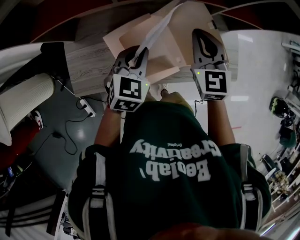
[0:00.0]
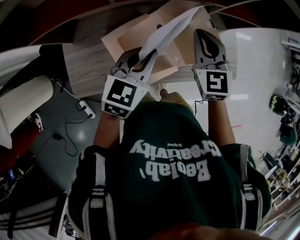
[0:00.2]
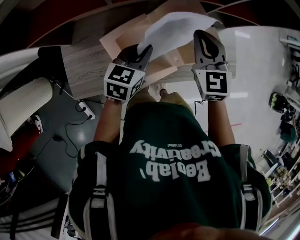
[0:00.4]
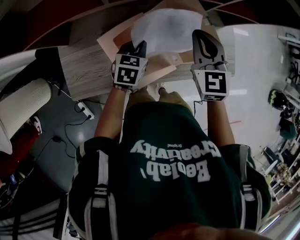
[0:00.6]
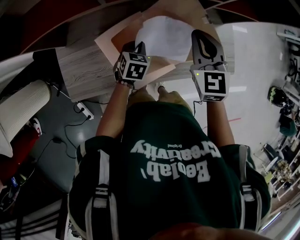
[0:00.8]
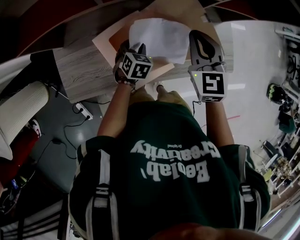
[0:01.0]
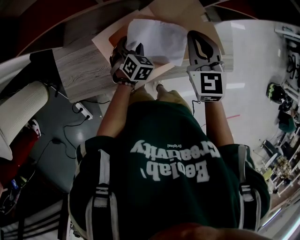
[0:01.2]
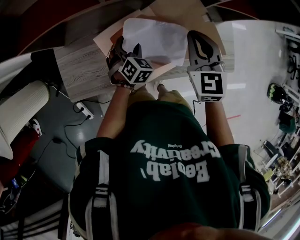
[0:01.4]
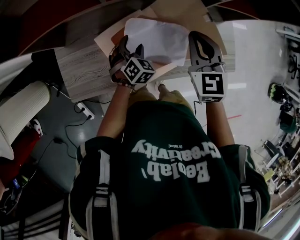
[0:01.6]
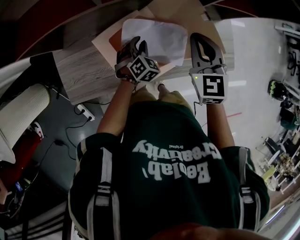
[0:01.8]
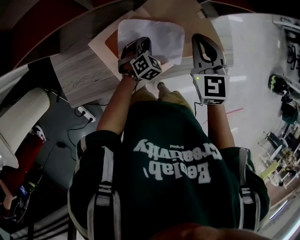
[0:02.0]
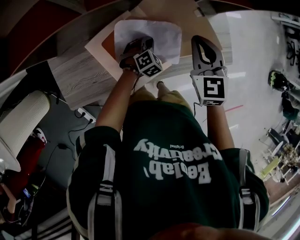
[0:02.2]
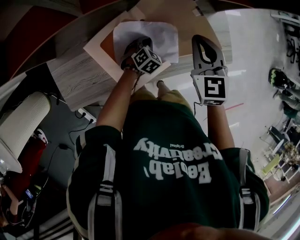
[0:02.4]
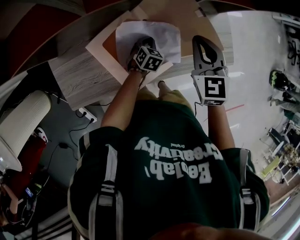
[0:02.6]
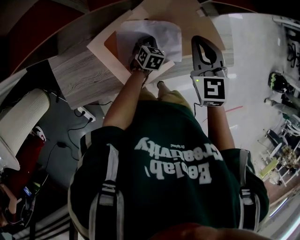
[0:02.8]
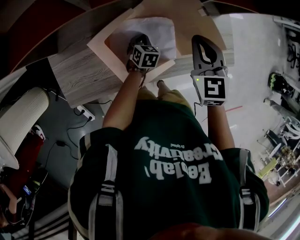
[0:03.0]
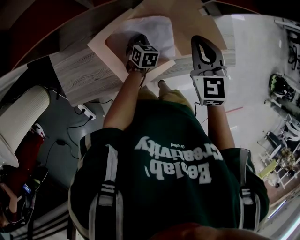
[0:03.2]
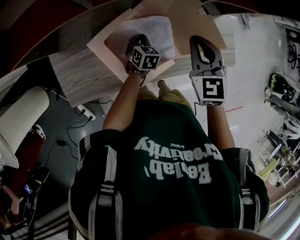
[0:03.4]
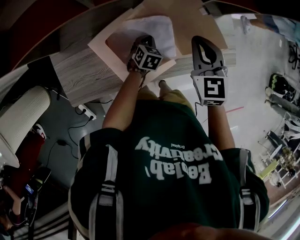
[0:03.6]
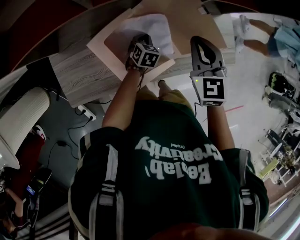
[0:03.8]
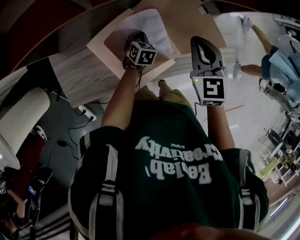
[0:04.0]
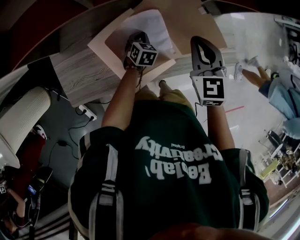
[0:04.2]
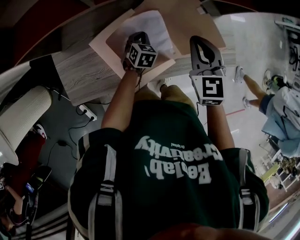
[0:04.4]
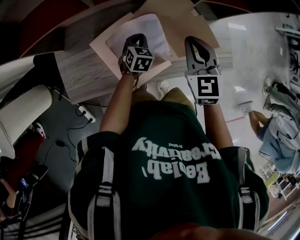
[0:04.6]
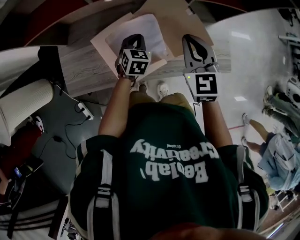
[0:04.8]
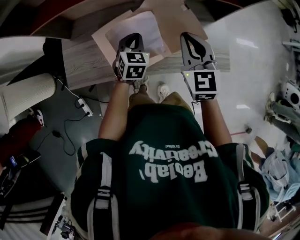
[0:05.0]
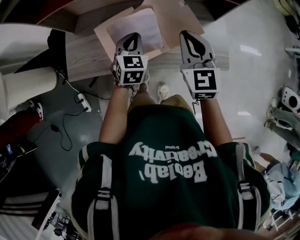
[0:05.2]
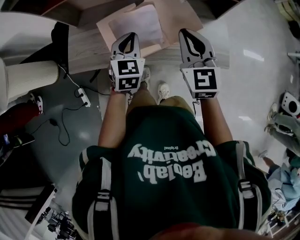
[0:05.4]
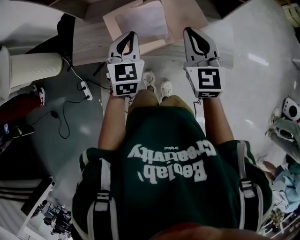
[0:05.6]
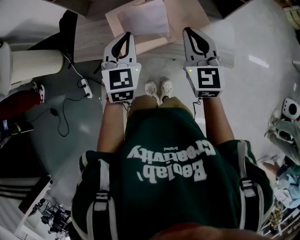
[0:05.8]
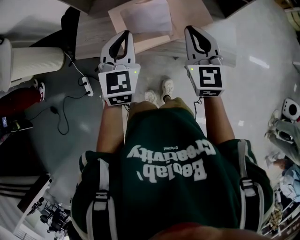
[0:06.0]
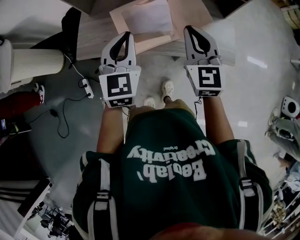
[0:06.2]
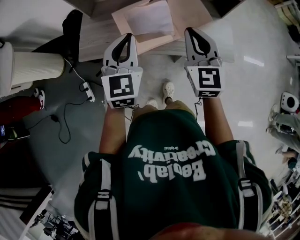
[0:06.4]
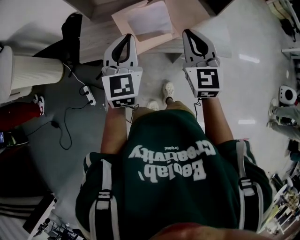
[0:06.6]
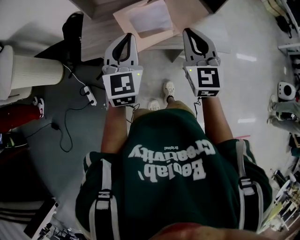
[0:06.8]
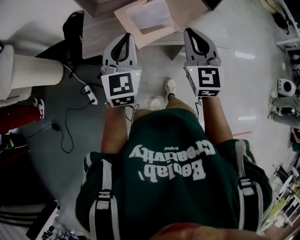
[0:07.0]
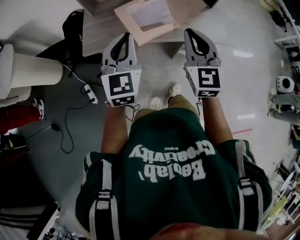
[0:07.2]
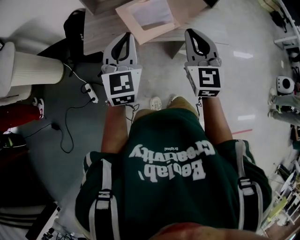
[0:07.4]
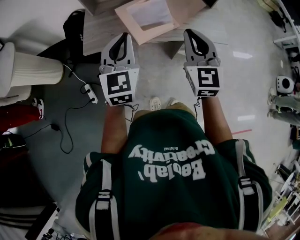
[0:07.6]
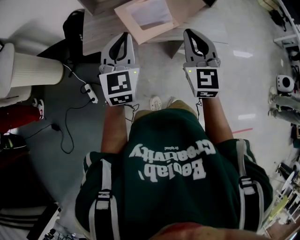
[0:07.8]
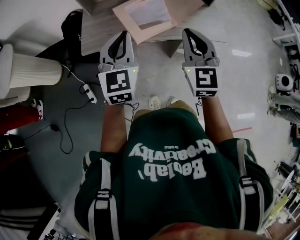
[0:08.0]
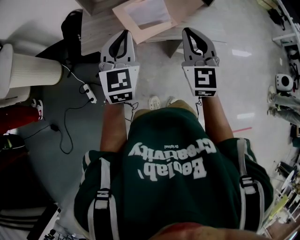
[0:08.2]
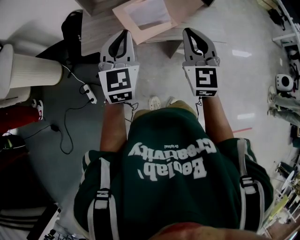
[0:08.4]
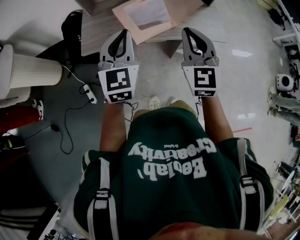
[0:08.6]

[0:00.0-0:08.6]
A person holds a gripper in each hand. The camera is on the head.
0:00.0 to 0:01.4: The left gripper moves downward, about 15 cm, changes its angle by approximately 30 degrees, and opens its fingers.
0:01.4 to 0:02.8: The left gripper heads to the right and downward, covering some 15 cm, rotates some 20 degrees, and closes up.
0:02.8 to 0:04.4: The left gripper changes place by roughly 5 cm.
0:04.4 to 0:05.8: The right gripper moves backward and upward, some 20 cm, and rotates roughly 30 degrees. Meanwhile the left gripper travels upward and backward by roughly 40 cm, and turns by some 40 degrees.
0:05.8 to 0:07.2: The right gripper moves backward and to the left, approximately 25 cm, while the left gripper heads backward, to the left and upward, covering some 25 cm.
0:07.2 to 0:08.6: The grippers stay close to where they were, moving slightly.

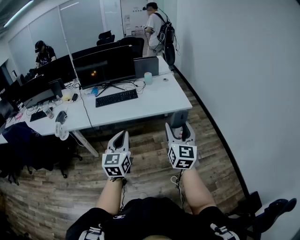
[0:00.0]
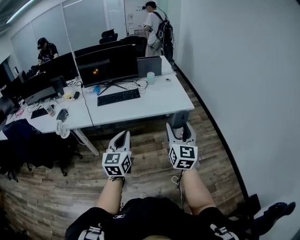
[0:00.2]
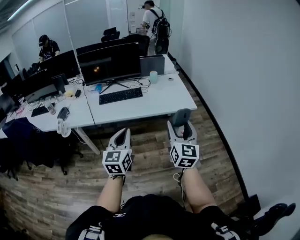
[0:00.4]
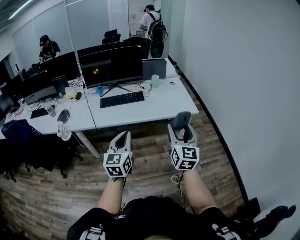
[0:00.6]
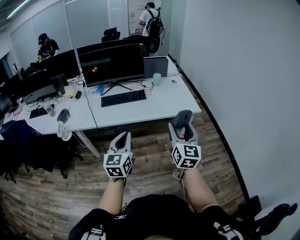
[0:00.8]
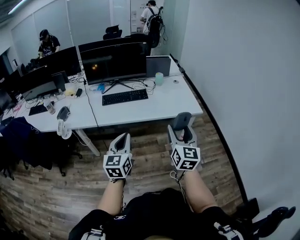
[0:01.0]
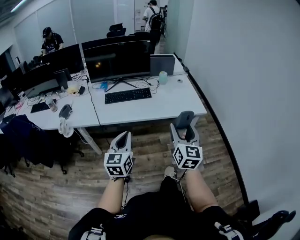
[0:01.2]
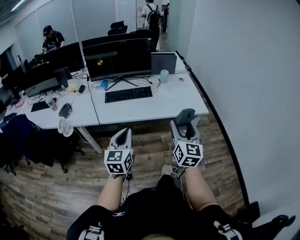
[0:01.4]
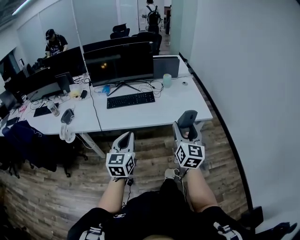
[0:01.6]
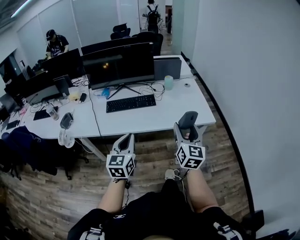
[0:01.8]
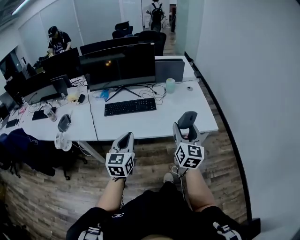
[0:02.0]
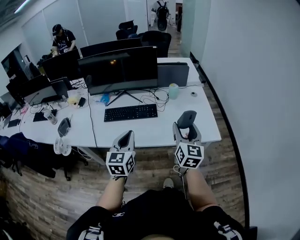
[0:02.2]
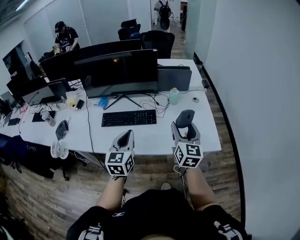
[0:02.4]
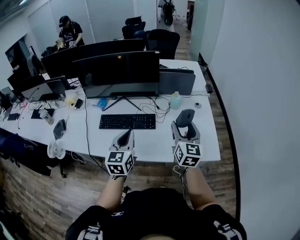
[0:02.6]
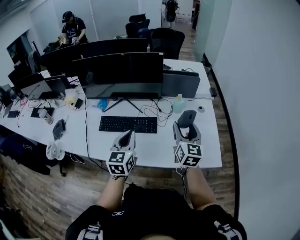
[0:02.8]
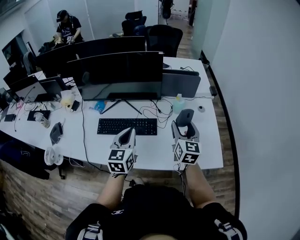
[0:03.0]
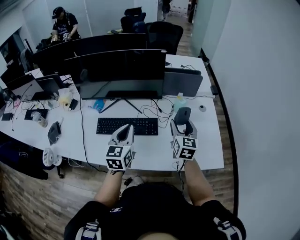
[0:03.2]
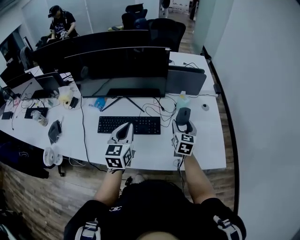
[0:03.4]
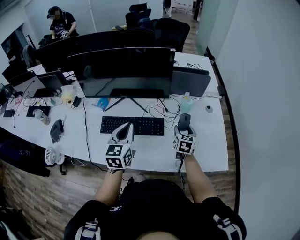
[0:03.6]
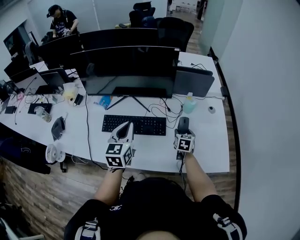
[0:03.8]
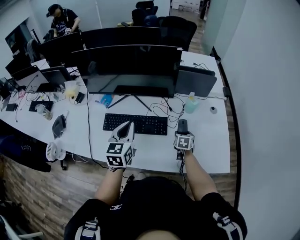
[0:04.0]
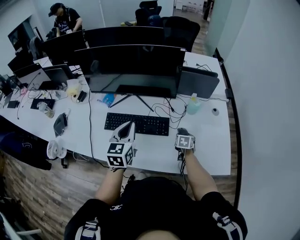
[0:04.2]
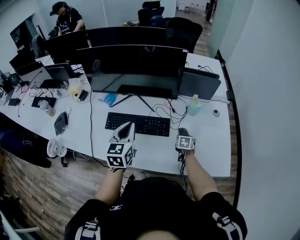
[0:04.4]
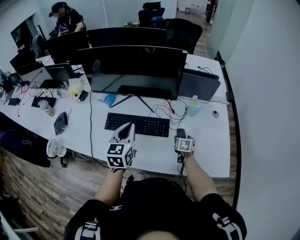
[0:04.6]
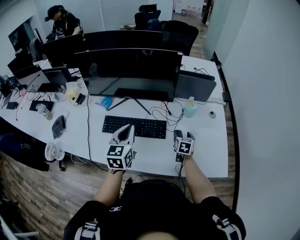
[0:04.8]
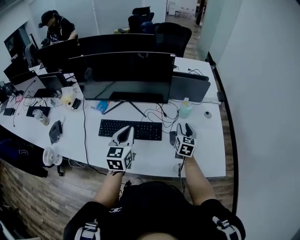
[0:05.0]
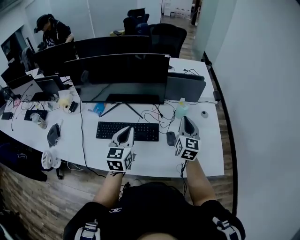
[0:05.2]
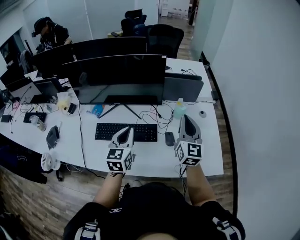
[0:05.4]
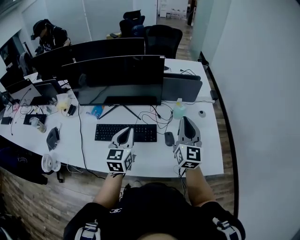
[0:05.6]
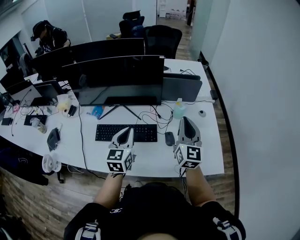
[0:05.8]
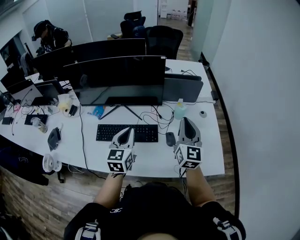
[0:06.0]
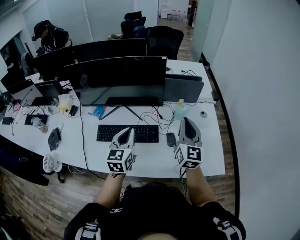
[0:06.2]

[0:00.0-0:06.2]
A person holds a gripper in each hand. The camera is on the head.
0:00.0 to 0:01.6: The two grippers go approximately 20 cm forward and to the left.
0:01.6 to 0:03.2: Both grippers are carried forward, approximately 50 cm.
0:03.2 to 0:04.6: The right gripper goes some 25 cm downward, and angles its fingers downward, by approximately 40 degrees; the left gripper travels to the left by roughly 5 cm.
0:04.6 to 0:06.2: The right gripper moves upward, roughly 35 cm, angles its fingers upward, by roughly 60 degrees, and closes up; the left gripper moves to the right, approximately 5 cm.

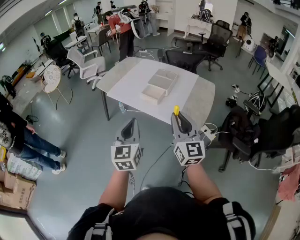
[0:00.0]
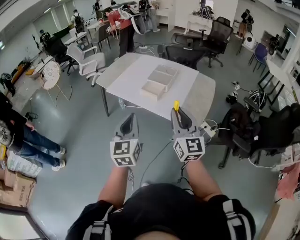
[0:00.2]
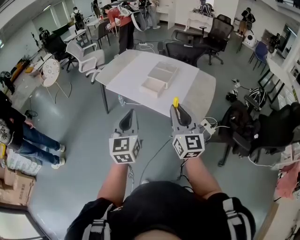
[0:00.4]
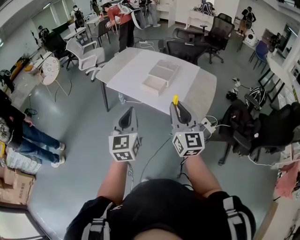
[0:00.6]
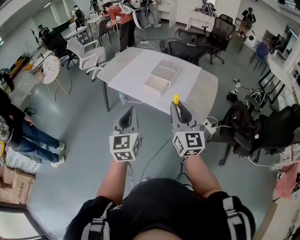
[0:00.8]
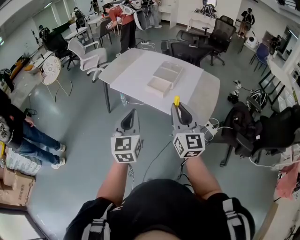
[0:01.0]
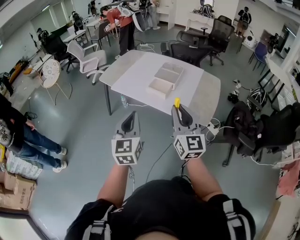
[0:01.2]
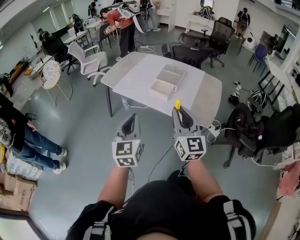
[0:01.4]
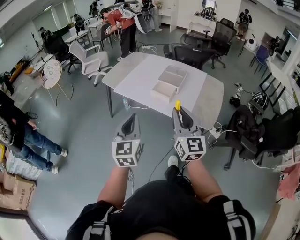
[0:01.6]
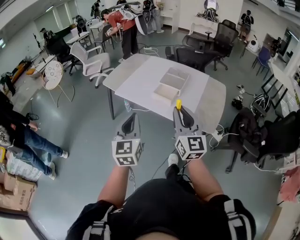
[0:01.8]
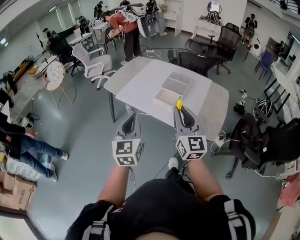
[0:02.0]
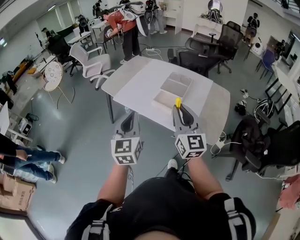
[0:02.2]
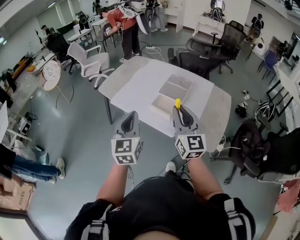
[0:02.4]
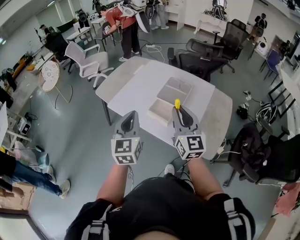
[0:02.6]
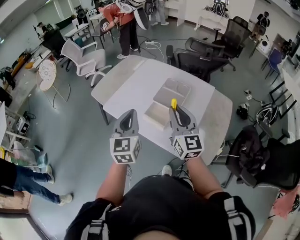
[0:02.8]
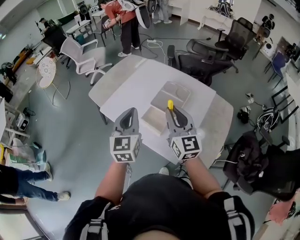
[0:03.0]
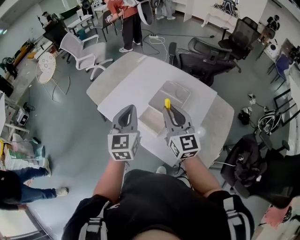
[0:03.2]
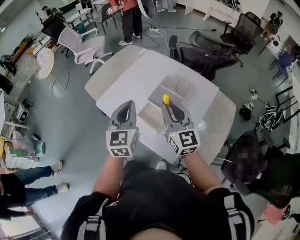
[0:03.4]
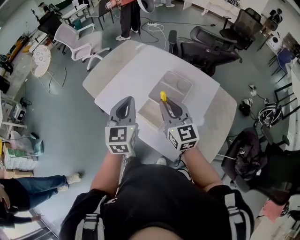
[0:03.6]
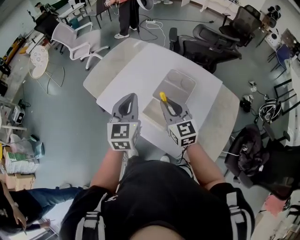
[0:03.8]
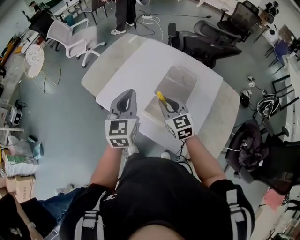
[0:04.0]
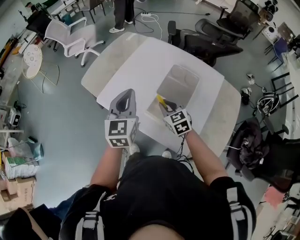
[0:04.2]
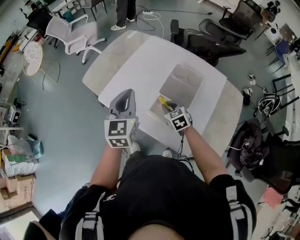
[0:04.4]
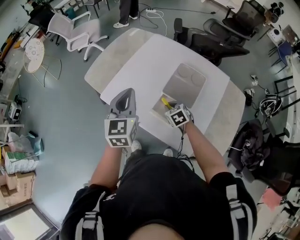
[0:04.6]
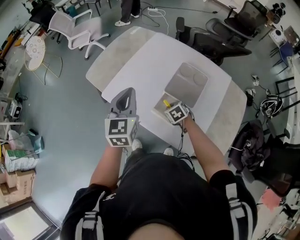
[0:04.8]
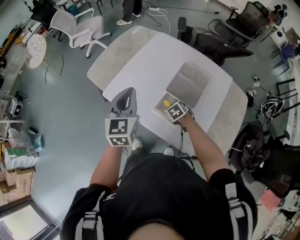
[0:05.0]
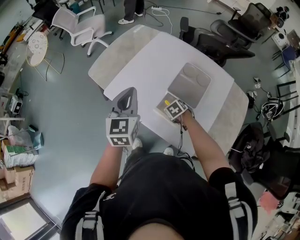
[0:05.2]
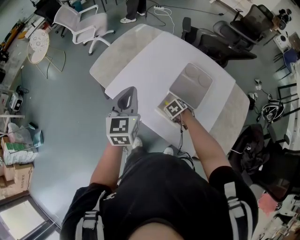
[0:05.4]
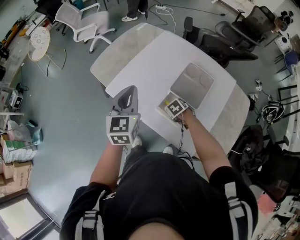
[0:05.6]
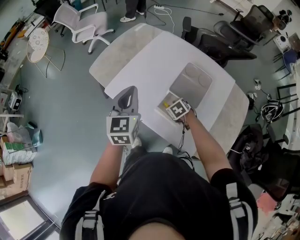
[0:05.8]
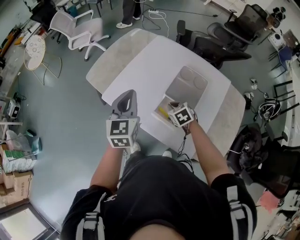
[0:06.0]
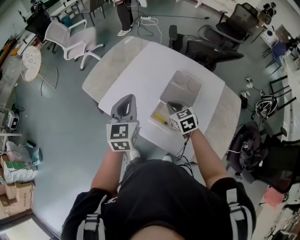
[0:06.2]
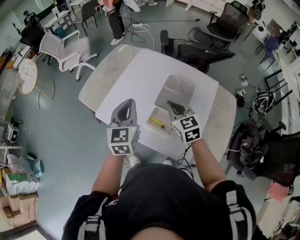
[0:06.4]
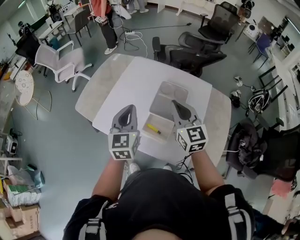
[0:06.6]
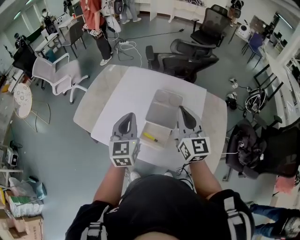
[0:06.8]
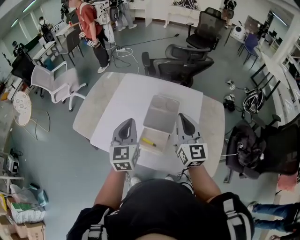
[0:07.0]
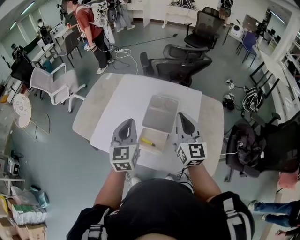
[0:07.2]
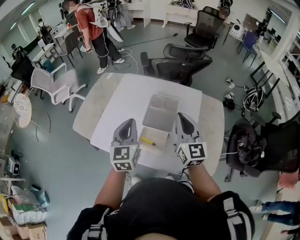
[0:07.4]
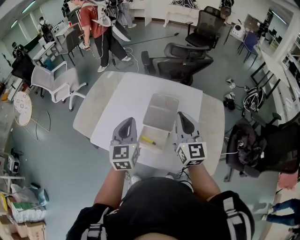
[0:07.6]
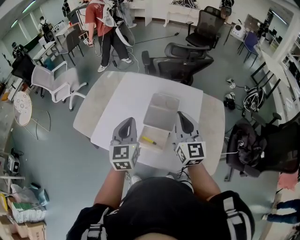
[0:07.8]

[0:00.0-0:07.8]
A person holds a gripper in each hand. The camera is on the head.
0:00.0 to 0:01.6: The two grippers go roughly 10 cm to the left.
0:01.6 to 0:03.2: Both grippers travel together forward, roughly 40 cm.
0:03.2 to 0:04.6: The right gripper is displaced downward by roughly 30 cm, and angles its fingers downward, by approximately 60 degrees. The left gripper moves forward, to the left and downward, approximately 15 cm.
0:04.6 to 0:06.2: The right gripper heads upward, covering approximately 10 cm.
0:06.2 to 0:07.8: The left gripper moves to the right, approximately 10 cm. Meanwhile the right gripper goes roughly 25 cm upward and to the right, and points its fingers approximately 40 degrees further upward.

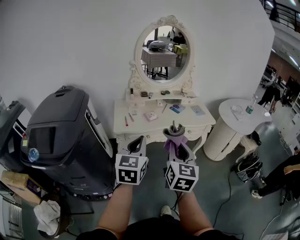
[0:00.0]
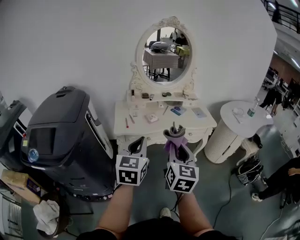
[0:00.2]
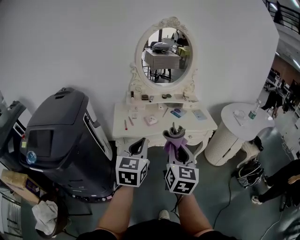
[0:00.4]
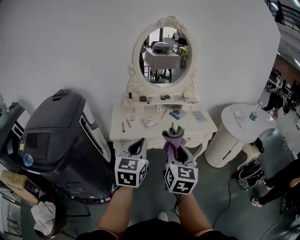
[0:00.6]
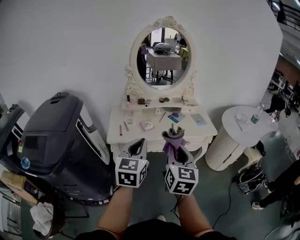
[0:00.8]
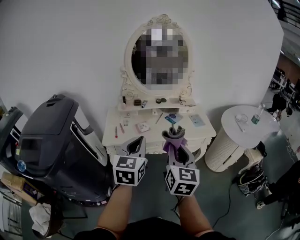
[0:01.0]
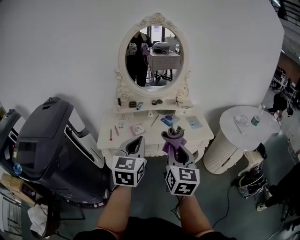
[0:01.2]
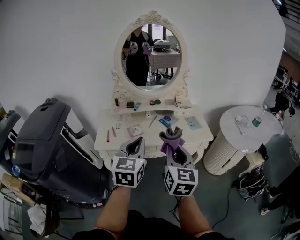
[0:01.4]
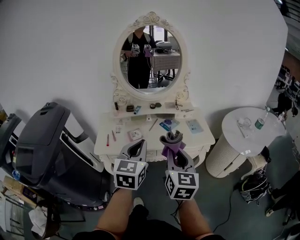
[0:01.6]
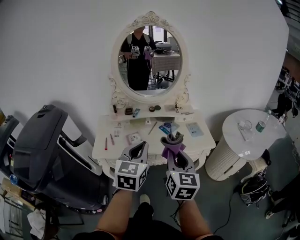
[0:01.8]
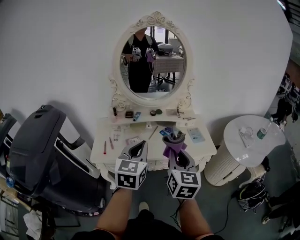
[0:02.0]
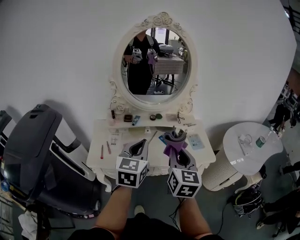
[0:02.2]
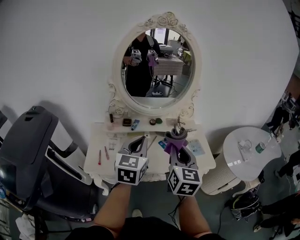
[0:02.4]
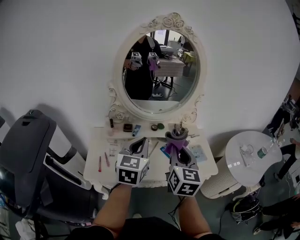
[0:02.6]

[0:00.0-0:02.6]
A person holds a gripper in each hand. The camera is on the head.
0:00.0 to 0:01.2: The two grippers go roughly 20 cm forward and to the right.
0:01.2 to 0:02.6: Both grippers move forward, roughly 25 cm.
